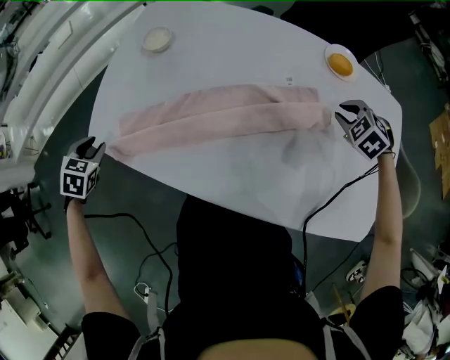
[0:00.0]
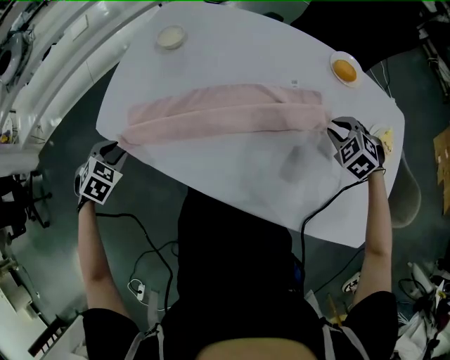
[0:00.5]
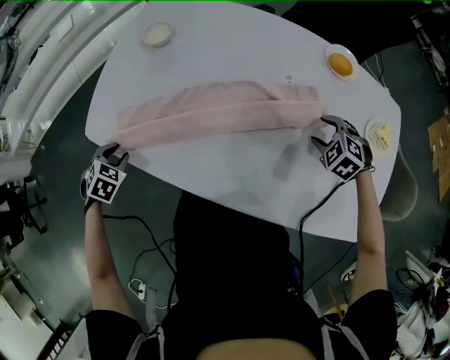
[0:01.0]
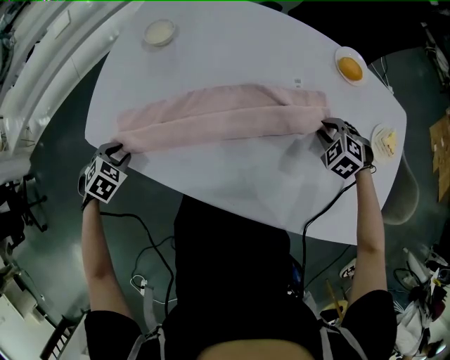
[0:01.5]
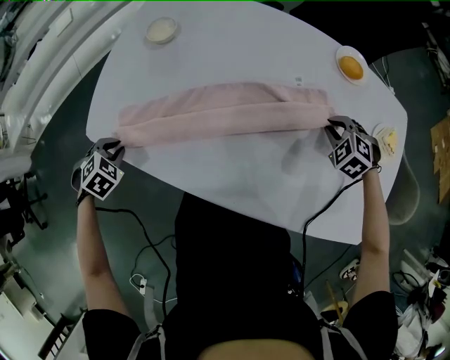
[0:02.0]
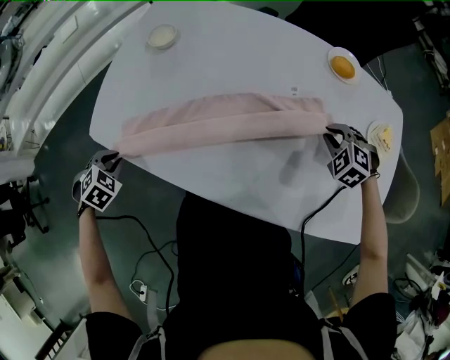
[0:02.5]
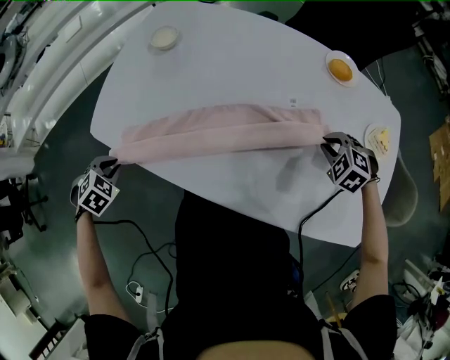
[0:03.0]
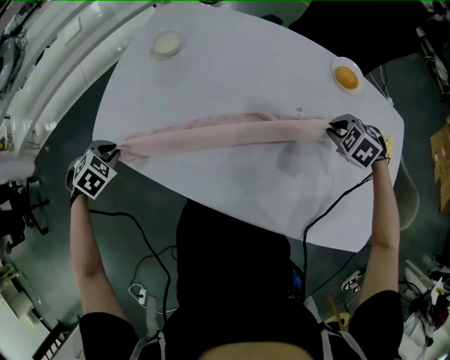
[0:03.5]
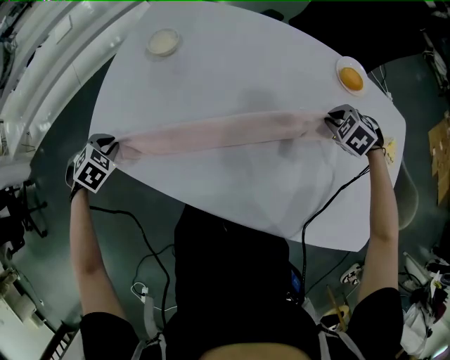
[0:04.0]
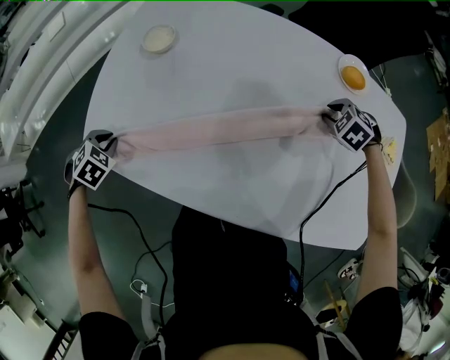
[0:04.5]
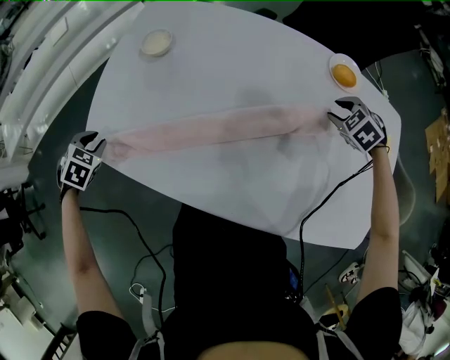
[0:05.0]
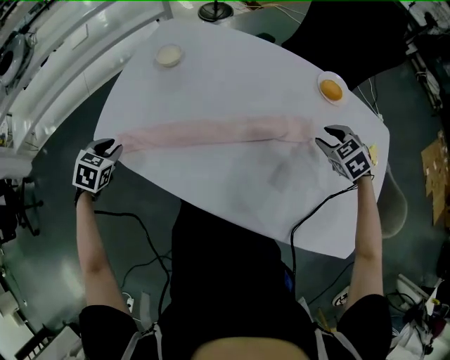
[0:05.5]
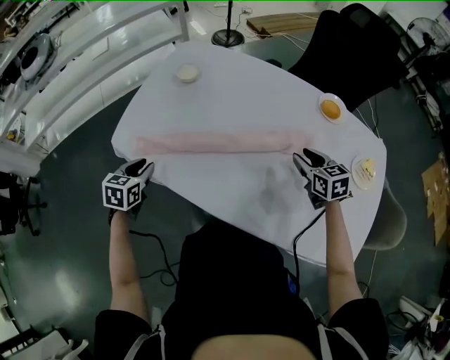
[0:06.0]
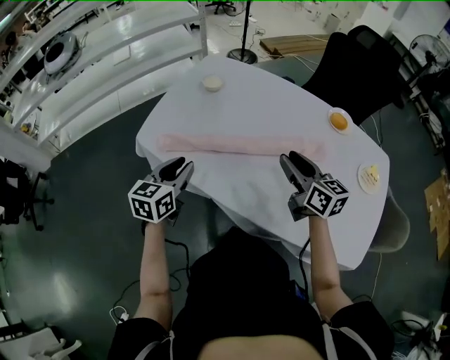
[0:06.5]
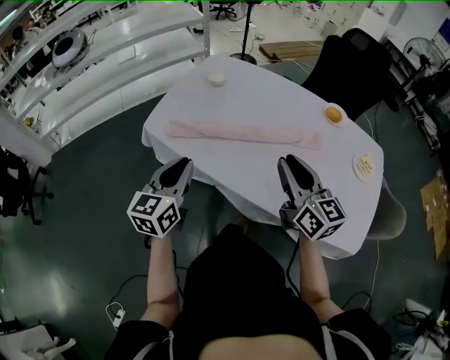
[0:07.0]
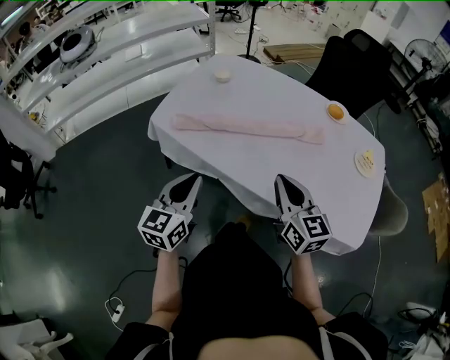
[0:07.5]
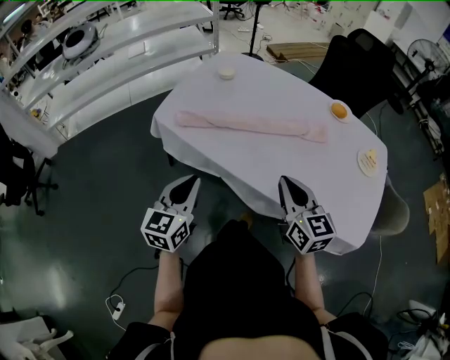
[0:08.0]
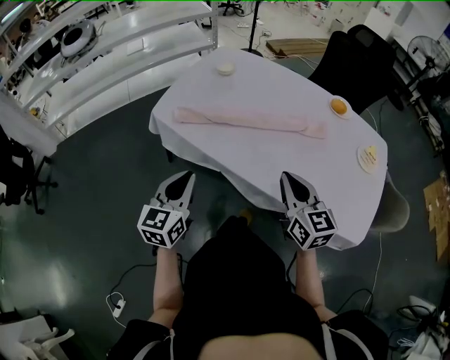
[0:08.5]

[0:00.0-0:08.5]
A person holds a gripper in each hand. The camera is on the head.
0:00.0 to 0:02.0: The right gripper ends up about 5 cm from where it was, and opens, then closes once more; the left gripper shifts approximately 5 cm downward, and rotates roughly 30 degrees.
0:02.0 to 0:04.0: The left gripper moves roughly 5 cm, while the right gripper changes place by about 5 cm.
0:04.0 to 0:06.5: The left gripper ends up some 30 cm from where it was, and tilts its fingers some 50 degrees upward. Meanwhile the right gripper ends up approximately 35 cm from where it was, tips its fingers upward by approximately 60 degrees, and opens its fingers.
0:06.5 to 0:08.5: Both grippers move backward, roughly 20 cm. The left gripper closes its fingers, while the right gripper closes.

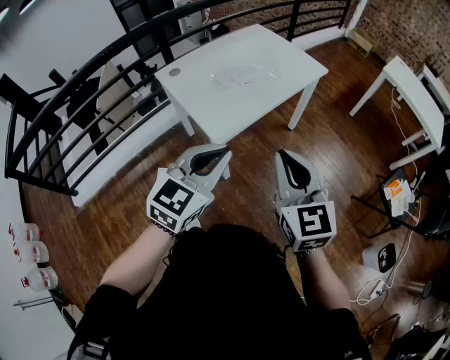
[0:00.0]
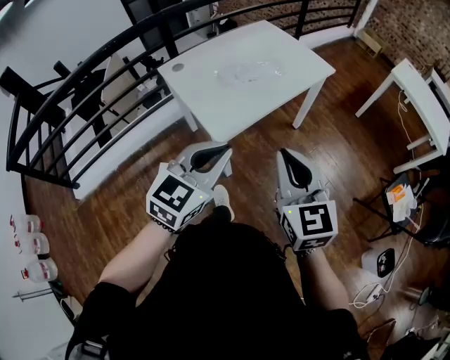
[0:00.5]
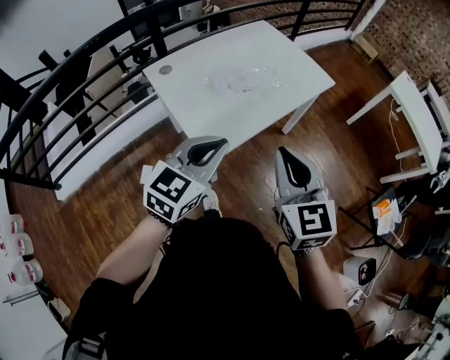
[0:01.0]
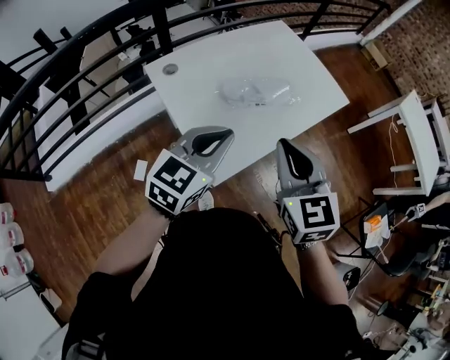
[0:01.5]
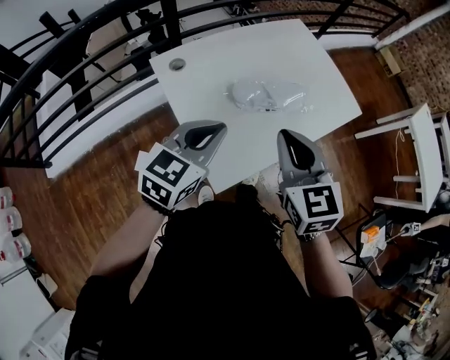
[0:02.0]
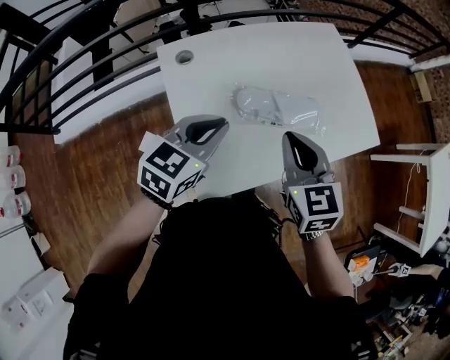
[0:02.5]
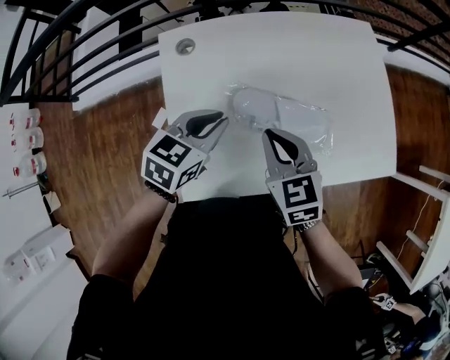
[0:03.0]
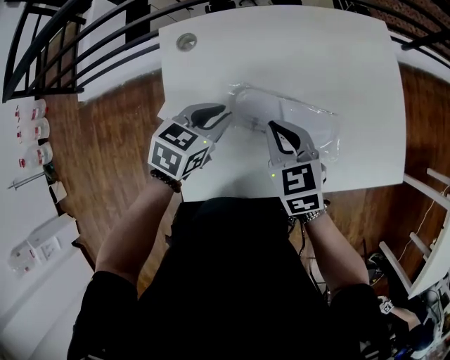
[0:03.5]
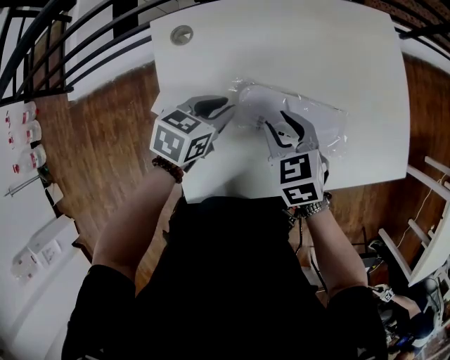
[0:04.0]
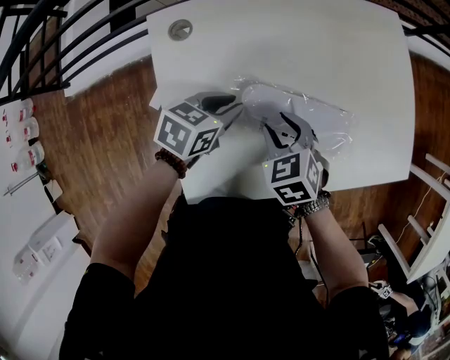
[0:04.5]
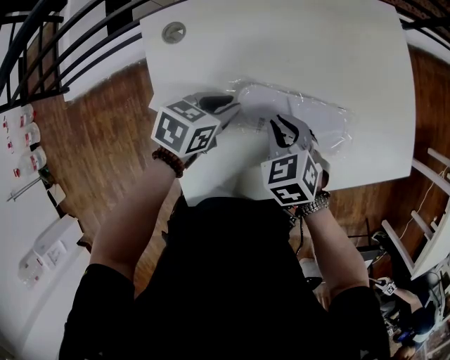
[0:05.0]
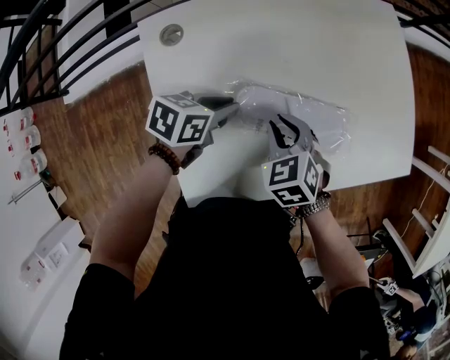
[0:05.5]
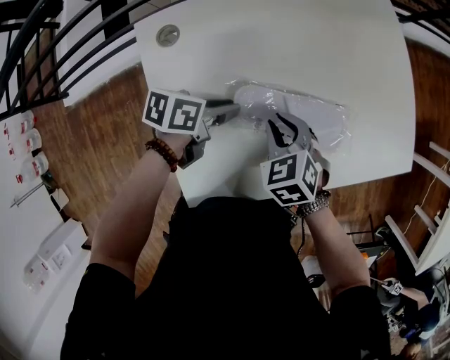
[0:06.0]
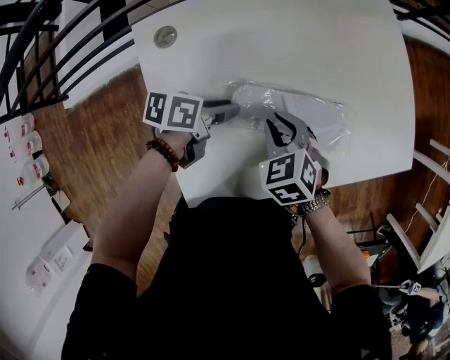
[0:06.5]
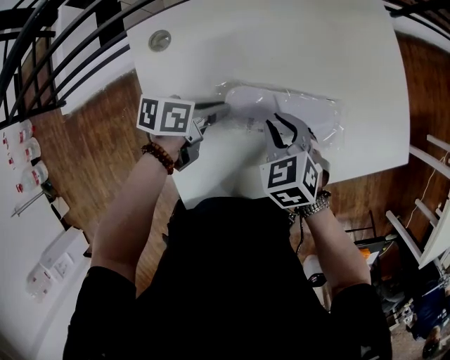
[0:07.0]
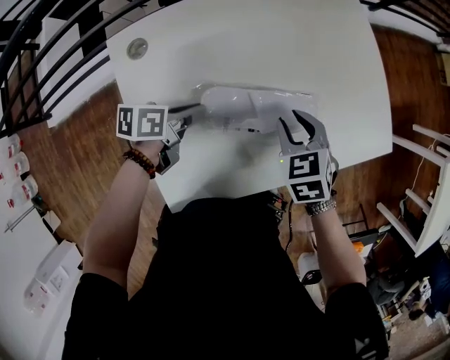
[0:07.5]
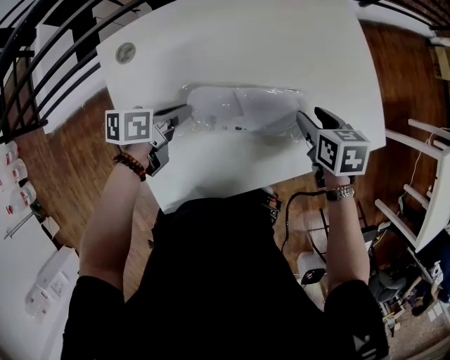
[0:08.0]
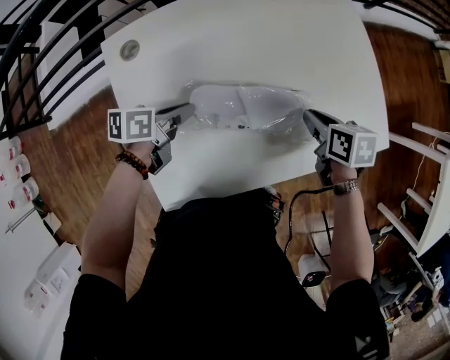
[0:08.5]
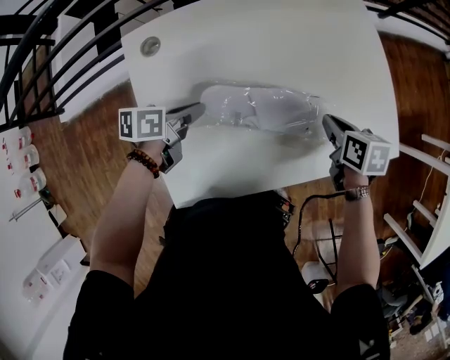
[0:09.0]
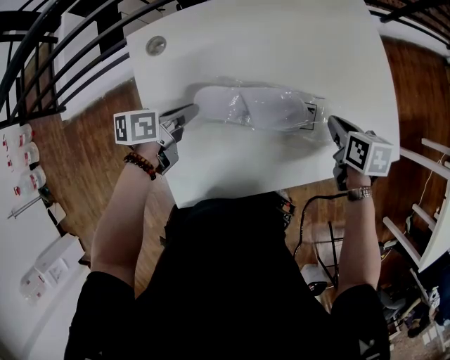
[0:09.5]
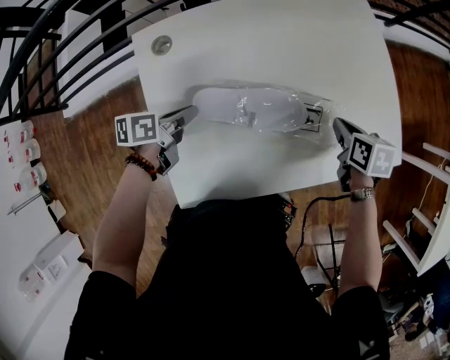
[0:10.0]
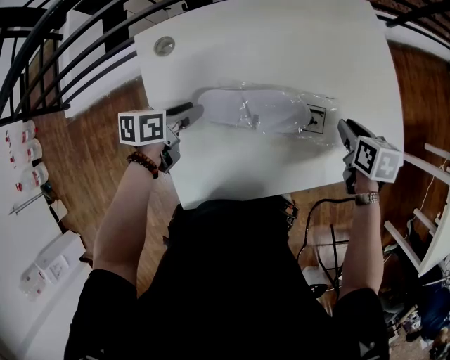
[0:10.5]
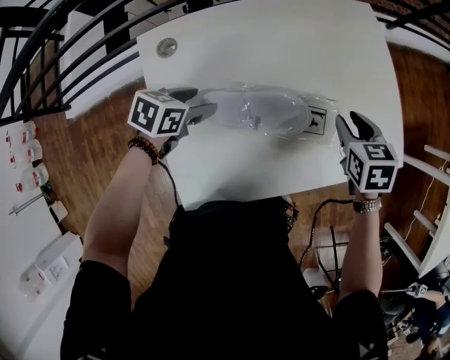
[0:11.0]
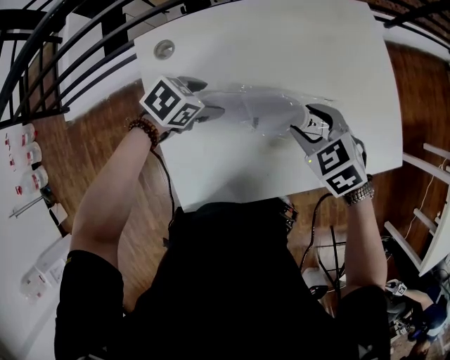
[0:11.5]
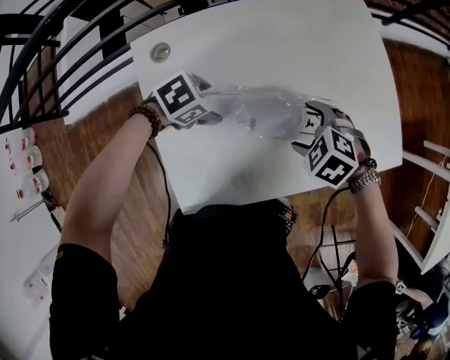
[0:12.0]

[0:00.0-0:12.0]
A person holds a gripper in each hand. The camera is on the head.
0:00.0 to 0:02.0: The two grippers go about 35 cm forward and to the left.
0:02.0 to 0:04.0: The two grippers go some 20 cm downward. The left gripper rotates approximately 40 degrees, while the right gripper turns by some 40 degrees.
0:04.0 to 0:06.0: The left gripper swivels approximately 30 degrees.
0:06.0 to 0:08.0: The right gripper goes approximately 20 cm to the right and forward, and swivels approximately 40 degrees.
0:08.0 to 0:10.0: The right gripper closes its fingers. Meanwhile the left gripper is displaced to the left by about 5 cm.
0:10.0 to 0:12.0: The right gripper shifts by roughly 15 cm, twists some 70 degrees counterclockwise, seen from behind, and opens; the left gripper changes place by roughly 5 cm, rolls clockwise, seen from behind, by about 60 degrees, and opens its fingers.

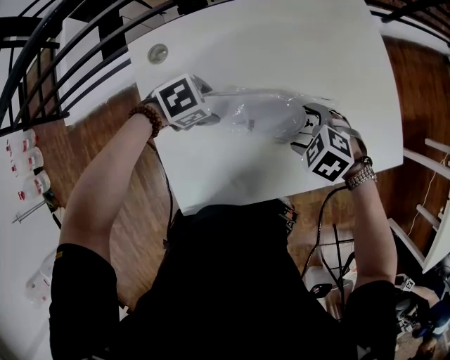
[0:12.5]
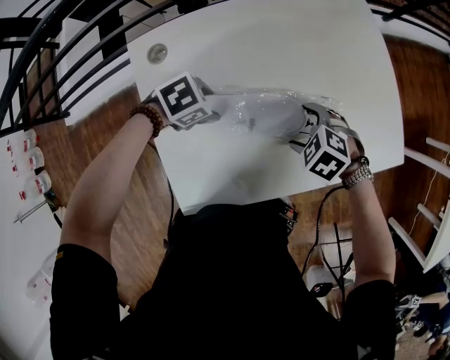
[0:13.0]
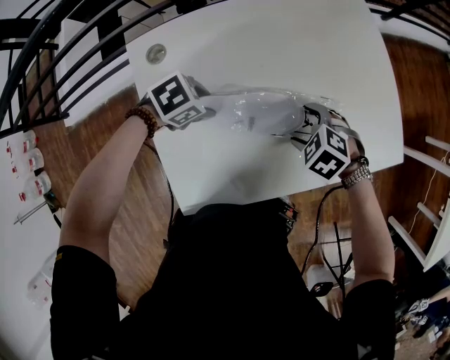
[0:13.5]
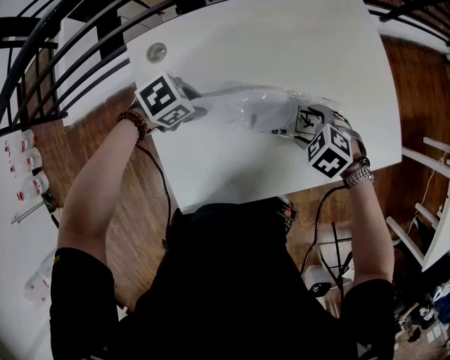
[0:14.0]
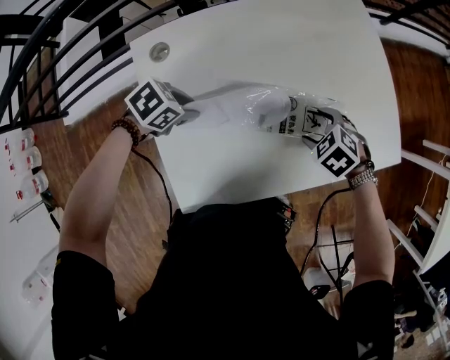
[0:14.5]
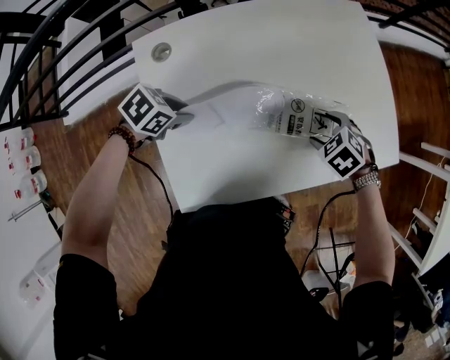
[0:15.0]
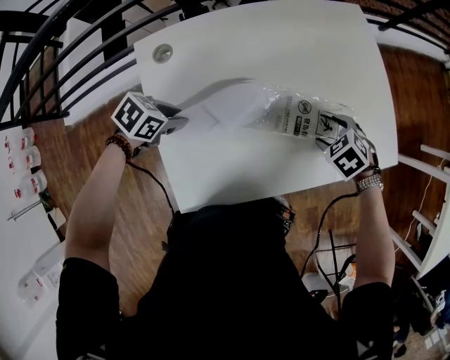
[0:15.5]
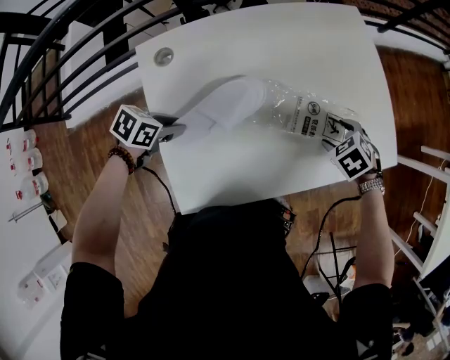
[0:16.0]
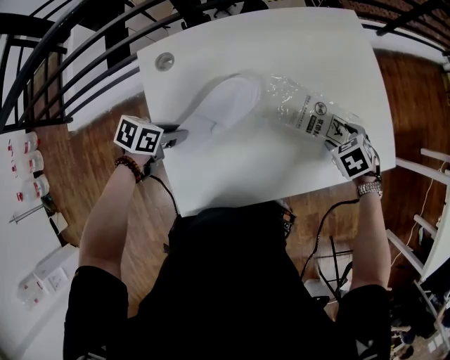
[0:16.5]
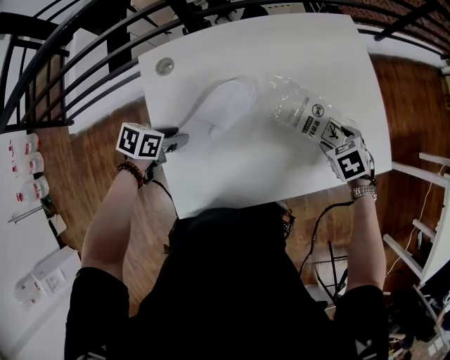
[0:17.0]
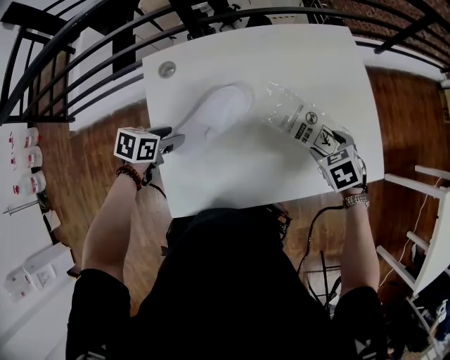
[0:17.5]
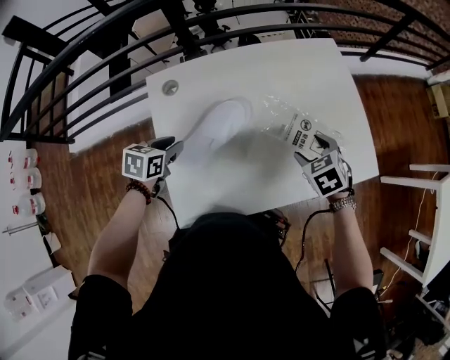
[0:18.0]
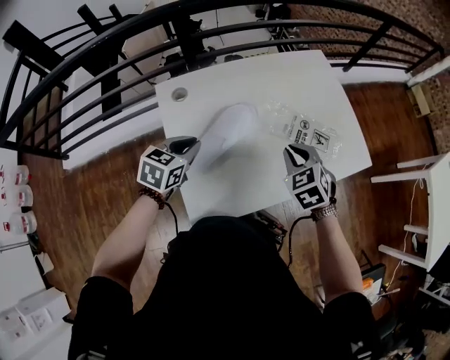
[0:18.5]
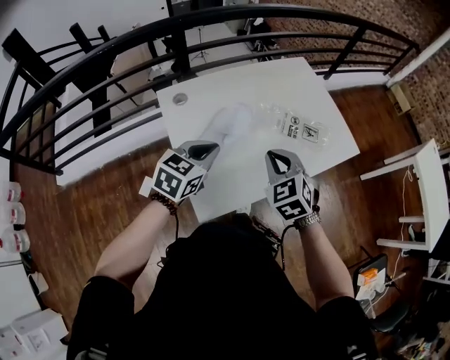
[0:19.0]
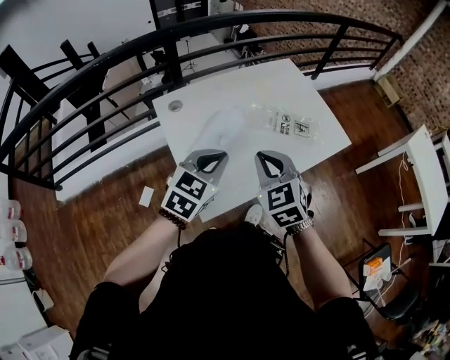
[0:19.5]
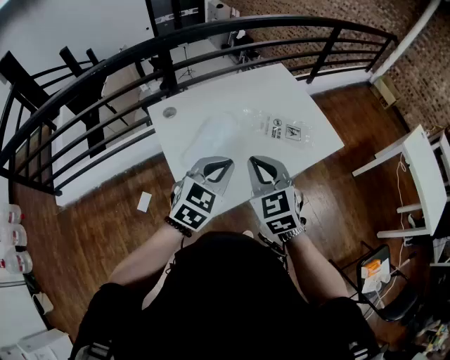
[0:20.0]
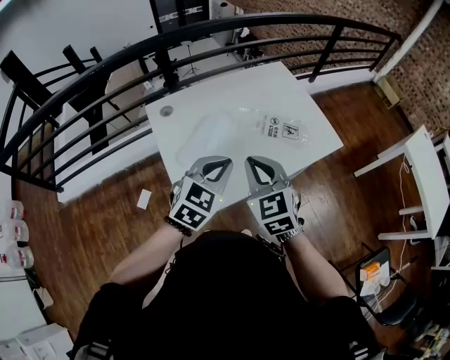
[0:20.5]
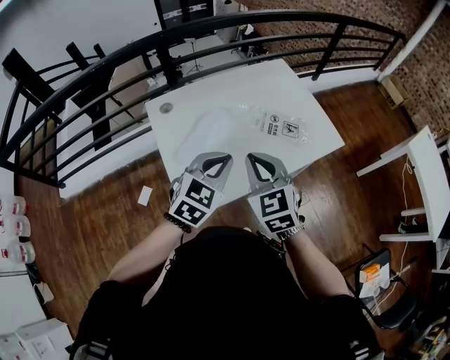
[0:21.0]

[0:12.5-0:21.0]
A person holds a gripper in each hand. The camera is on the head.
0:12.5 to 0:14.5: The left gripper closes up, while the right gripper moves about 5 cm.
0:14.5 to 0:16.5: The right gripper changes place by some 10 cm, and swivels about 20 degrees. The left gripper changes place by approximately 5 cm, and swivels about 30 degrees.
0:16.5 to 0:19.0: The right gripper shifts by approximately 35 cm, points its fingers approximately 40 degrees further upward, and closes its fingers; the left gripper heads upward, covering some 20 cm, and turns by some 50 degrees.
0:19.0 to 0:21.0: The right gripper is displaced upward and backward by some 10 cm; the left gripper goes some 10 cm to the right and upward.
